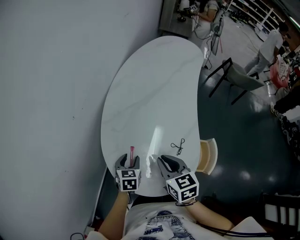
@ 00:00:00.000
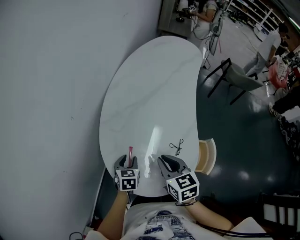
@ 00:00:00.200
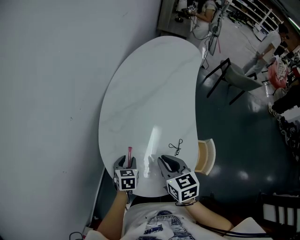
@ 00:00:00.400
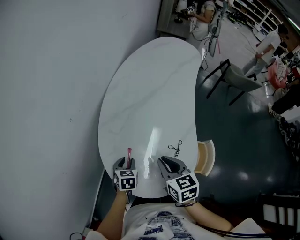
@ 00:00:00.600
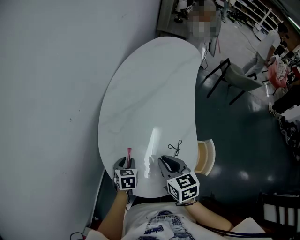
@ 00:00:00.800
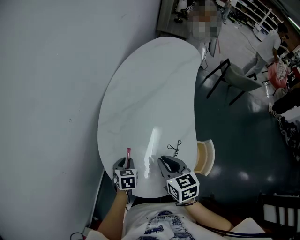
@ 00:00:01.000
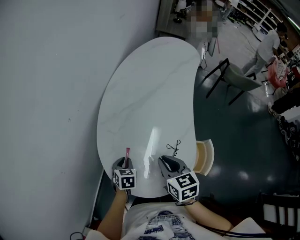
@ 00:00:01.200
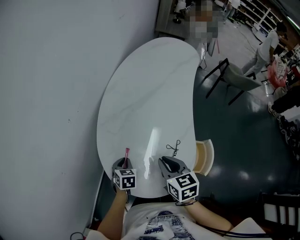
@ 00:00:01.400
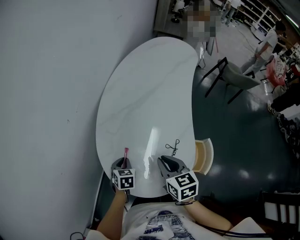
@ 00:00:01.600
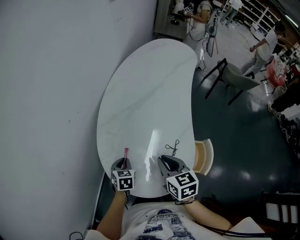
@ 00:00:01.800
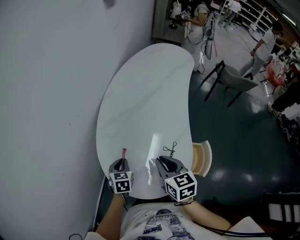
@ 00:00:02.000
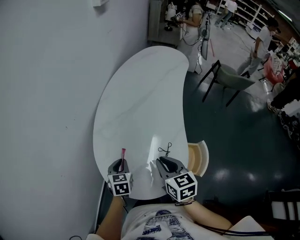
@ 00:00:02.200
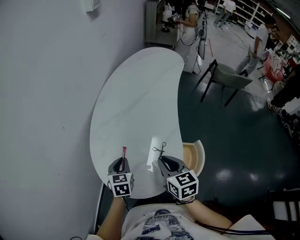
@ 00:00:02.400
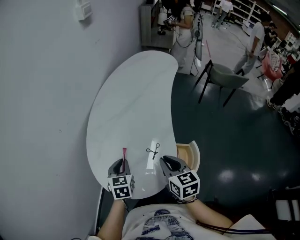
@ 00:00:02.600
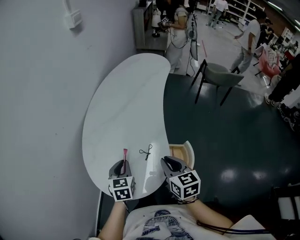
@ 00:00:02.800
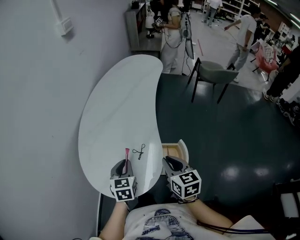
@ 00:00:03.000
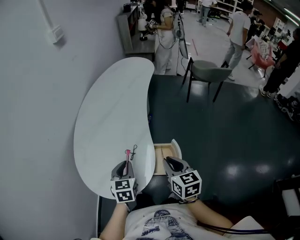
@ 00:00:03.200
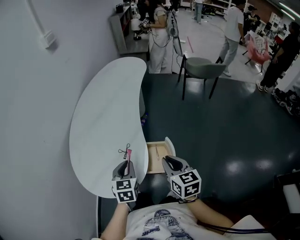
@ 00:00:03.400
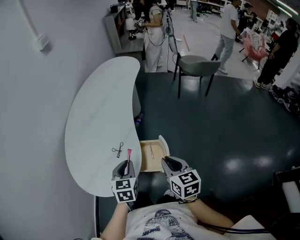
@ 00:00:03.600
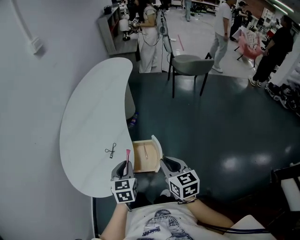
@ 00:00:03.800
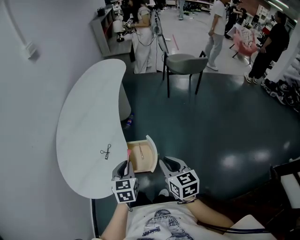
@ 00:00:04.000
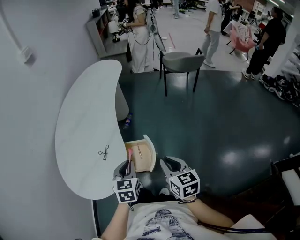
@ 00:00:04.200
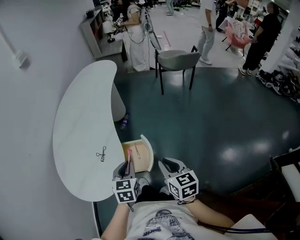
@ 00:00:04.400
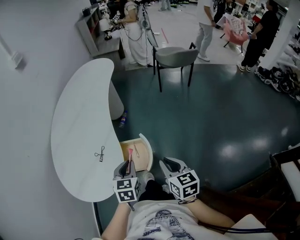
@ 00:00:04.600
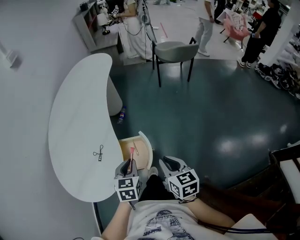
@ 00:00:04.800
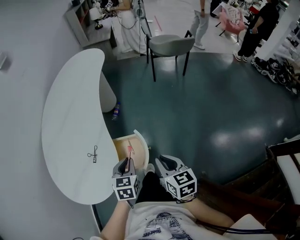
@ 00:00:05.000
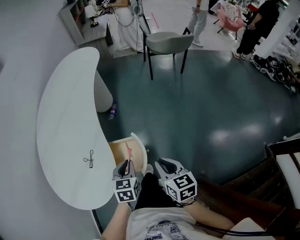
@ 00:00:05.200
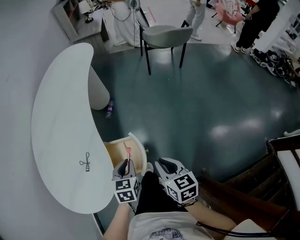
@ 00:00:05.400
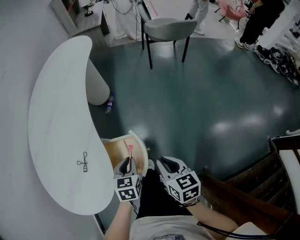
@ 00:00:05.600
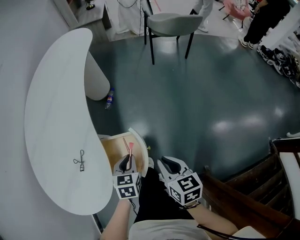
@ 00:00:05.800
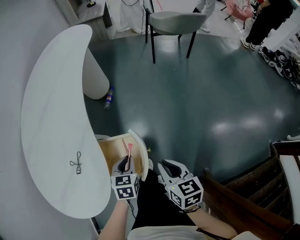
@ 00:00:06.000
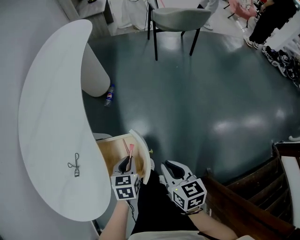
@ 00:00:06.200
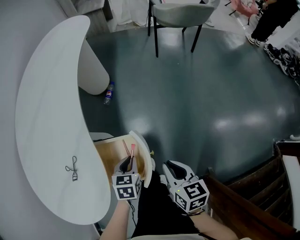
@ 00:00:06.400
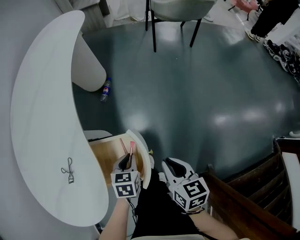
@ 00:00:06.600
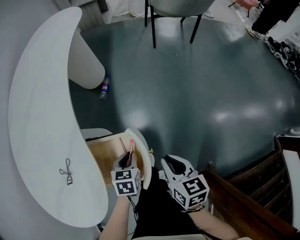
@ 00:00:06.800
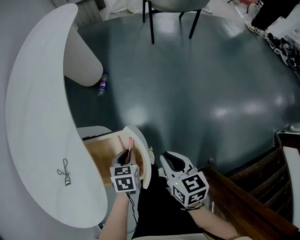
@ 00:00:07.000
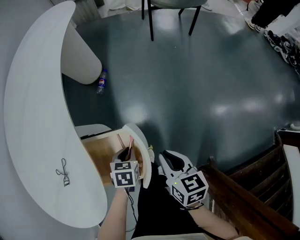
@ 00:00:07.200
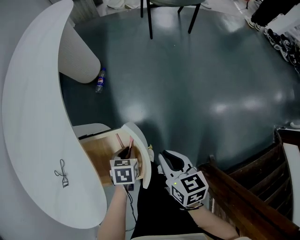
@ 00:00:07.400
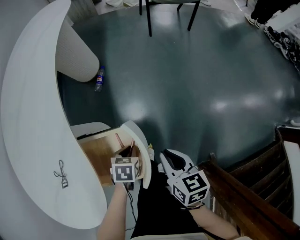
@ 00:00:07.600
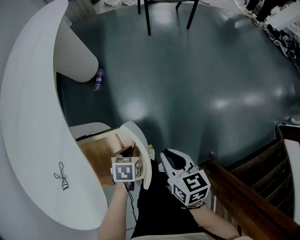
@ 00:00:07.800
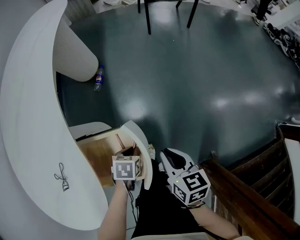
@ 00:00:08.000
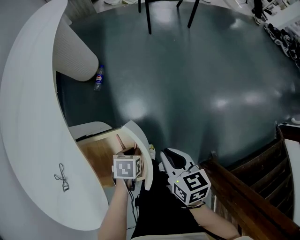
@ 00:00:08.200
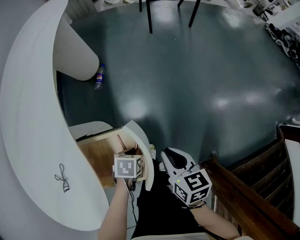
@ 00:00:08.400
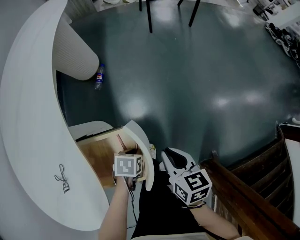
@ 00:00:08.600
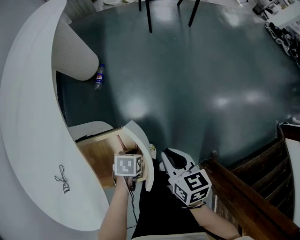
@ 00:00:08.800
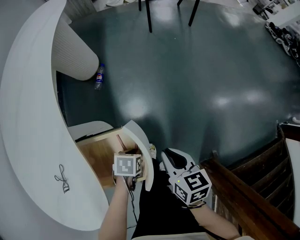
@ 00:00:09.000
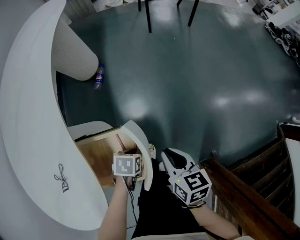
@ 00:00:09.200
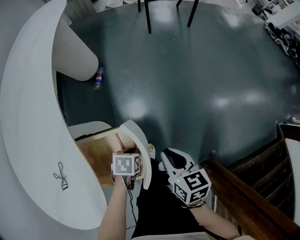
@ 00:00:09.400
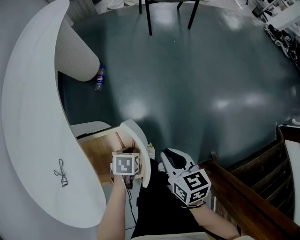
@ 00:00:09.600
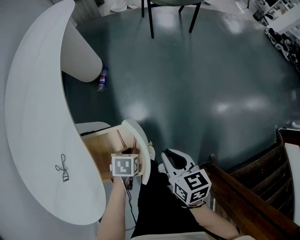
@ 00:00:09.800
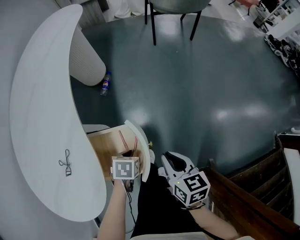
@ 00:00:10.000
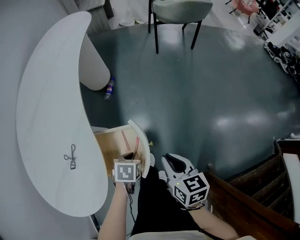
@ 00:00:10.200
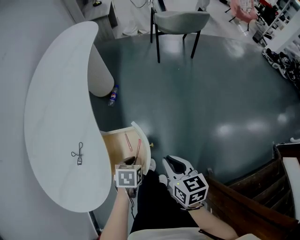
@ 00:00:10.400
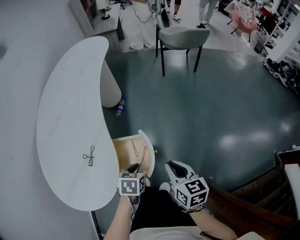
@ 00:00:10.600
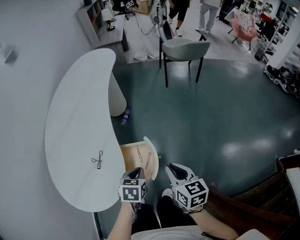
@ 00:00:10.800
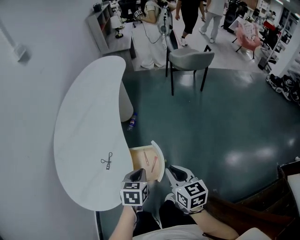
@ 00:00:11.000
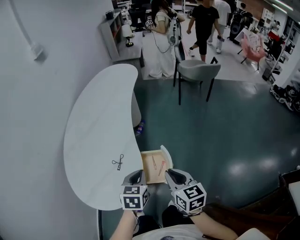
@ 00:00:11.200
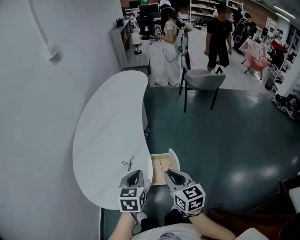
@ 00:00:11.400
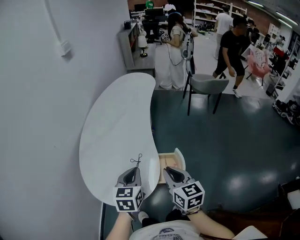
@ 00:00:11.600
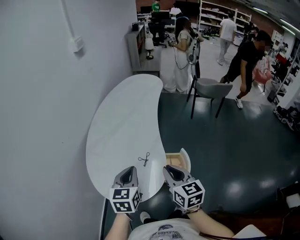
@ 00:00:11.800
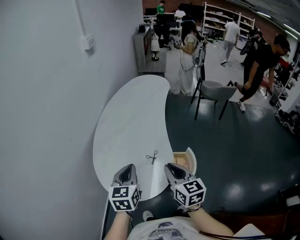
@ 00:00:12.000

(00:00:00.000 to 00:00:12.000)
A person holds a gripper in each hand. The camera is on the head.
00:00:00.000 - 00:00:01.600: The left gripper closes.
00:00:01.600 - 00:00:03.000: The left gripper goes about 25 cm to the right and upward. The right gripper heads to the right and backward, covering some 25 cm.
00:00:03.000 - 00:00:04.400: The left gripper travels to the right by some 25 cm. Meanwhile the right gripper shifts roughly 25 cm to the right and backward.
00:00:04.400 - 00:00:06.000: Both grippers travel together downward, roughly 20 cm.
00:00:06.000 - 00:00:07.600: The two grippers go some 15 cm downward. The left gripper swivels approximately 20 degrees.
00:00:07.600 - 00:00:09.000: There are only small adjustments of the grippers.
00:00:09.000 - 00:00:10.400: Both grippers move upward, roughly 15 cm.
00:00:10.400 - 00:00:12.000: The right gripper is displaced to the left and upward by approximately 40 cm, and turns by approximately 20 degrees; the left gripper goes roughly 50 cm upward and to the left, and tips its fingers upward by approximately 40 degrees.

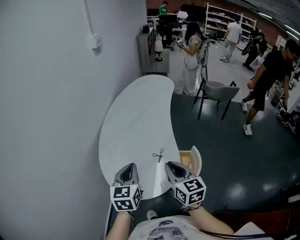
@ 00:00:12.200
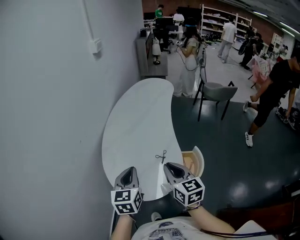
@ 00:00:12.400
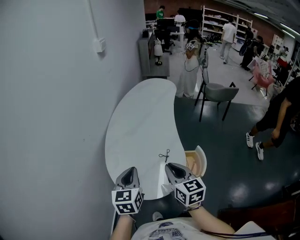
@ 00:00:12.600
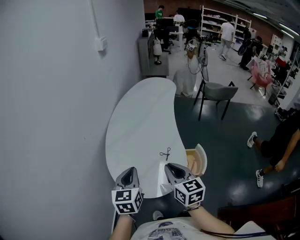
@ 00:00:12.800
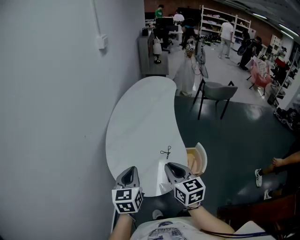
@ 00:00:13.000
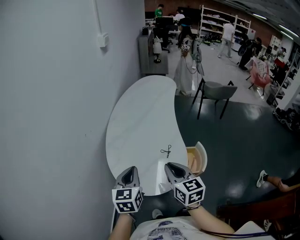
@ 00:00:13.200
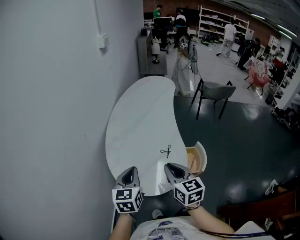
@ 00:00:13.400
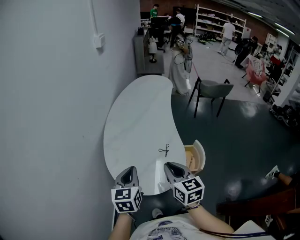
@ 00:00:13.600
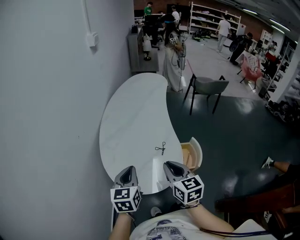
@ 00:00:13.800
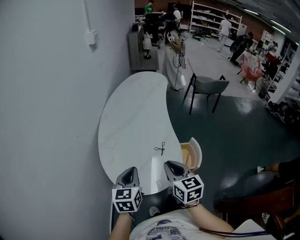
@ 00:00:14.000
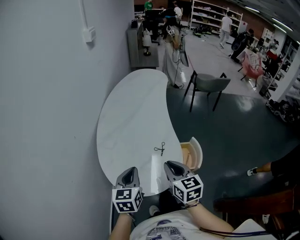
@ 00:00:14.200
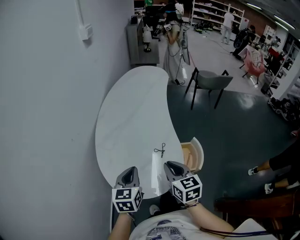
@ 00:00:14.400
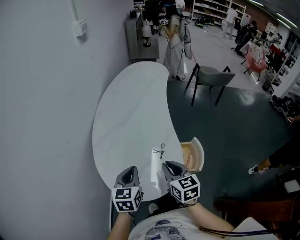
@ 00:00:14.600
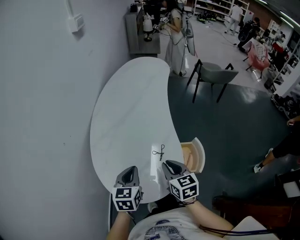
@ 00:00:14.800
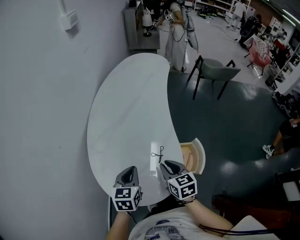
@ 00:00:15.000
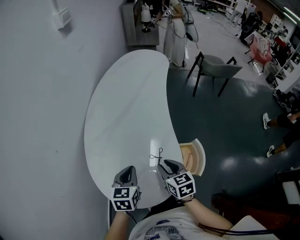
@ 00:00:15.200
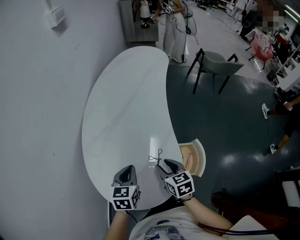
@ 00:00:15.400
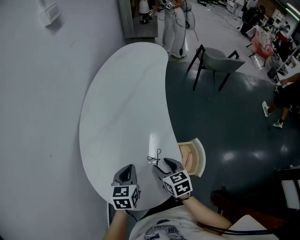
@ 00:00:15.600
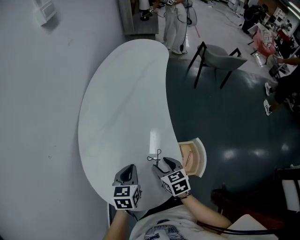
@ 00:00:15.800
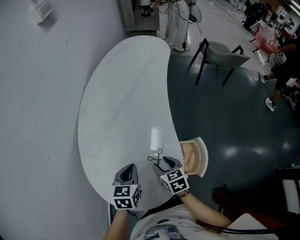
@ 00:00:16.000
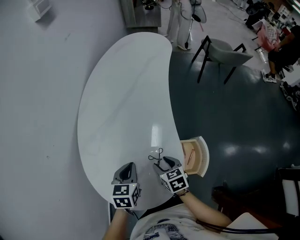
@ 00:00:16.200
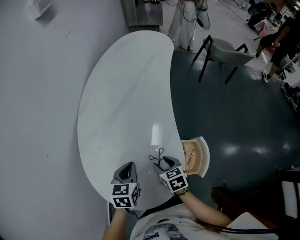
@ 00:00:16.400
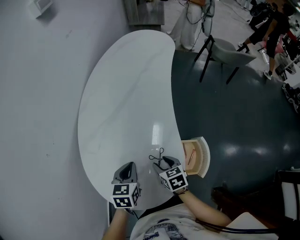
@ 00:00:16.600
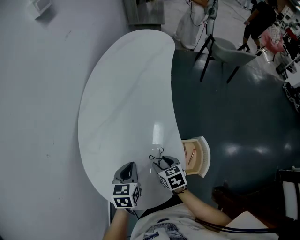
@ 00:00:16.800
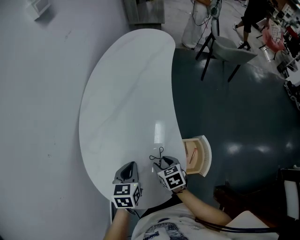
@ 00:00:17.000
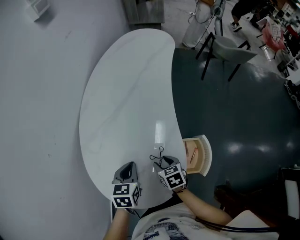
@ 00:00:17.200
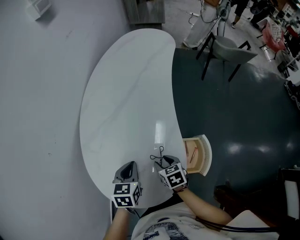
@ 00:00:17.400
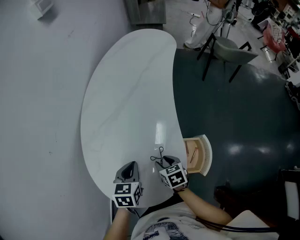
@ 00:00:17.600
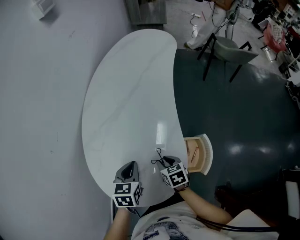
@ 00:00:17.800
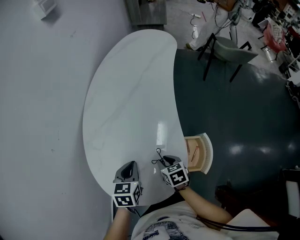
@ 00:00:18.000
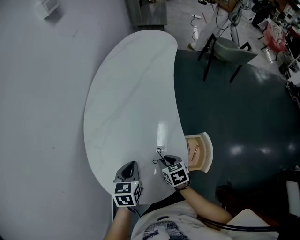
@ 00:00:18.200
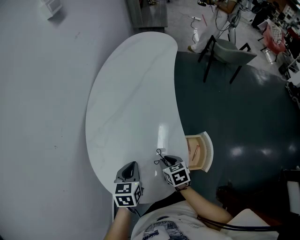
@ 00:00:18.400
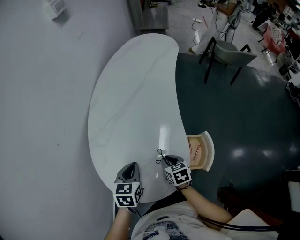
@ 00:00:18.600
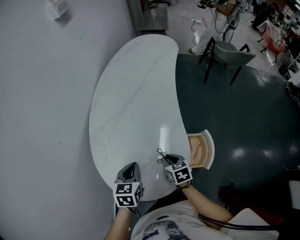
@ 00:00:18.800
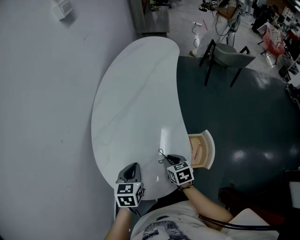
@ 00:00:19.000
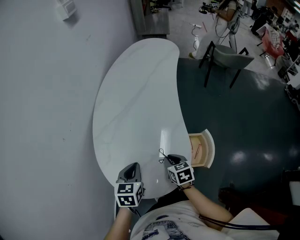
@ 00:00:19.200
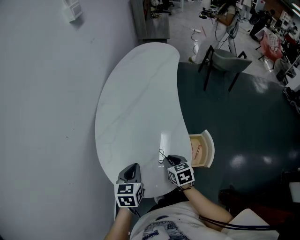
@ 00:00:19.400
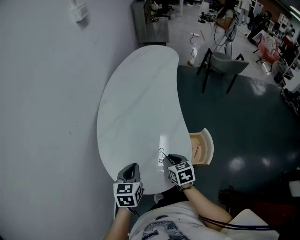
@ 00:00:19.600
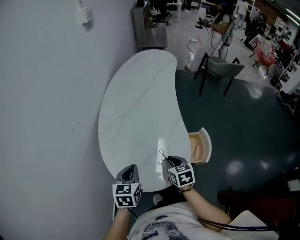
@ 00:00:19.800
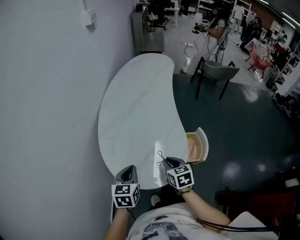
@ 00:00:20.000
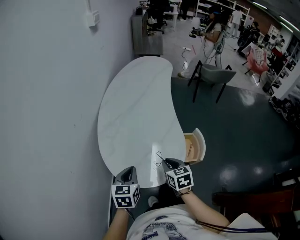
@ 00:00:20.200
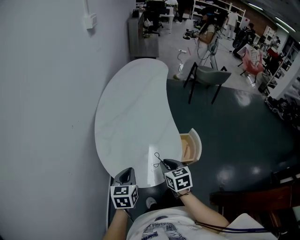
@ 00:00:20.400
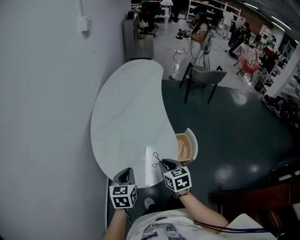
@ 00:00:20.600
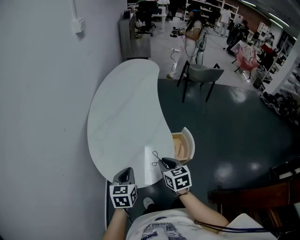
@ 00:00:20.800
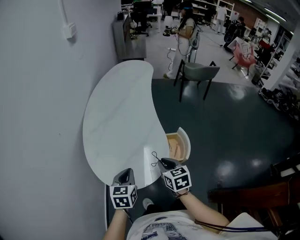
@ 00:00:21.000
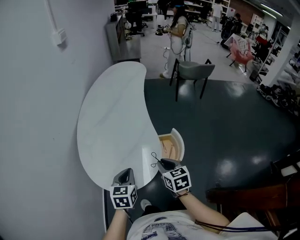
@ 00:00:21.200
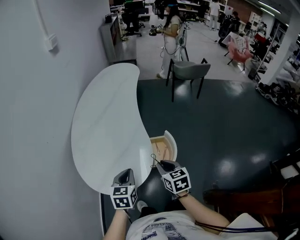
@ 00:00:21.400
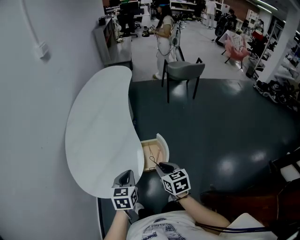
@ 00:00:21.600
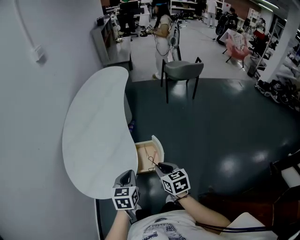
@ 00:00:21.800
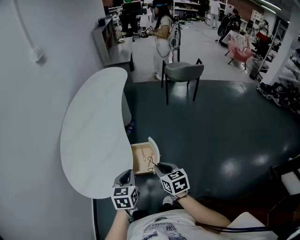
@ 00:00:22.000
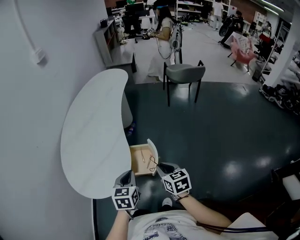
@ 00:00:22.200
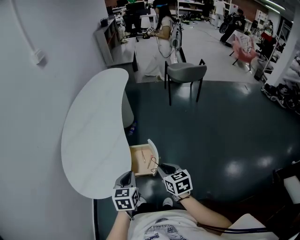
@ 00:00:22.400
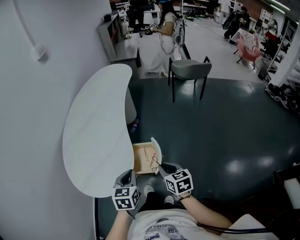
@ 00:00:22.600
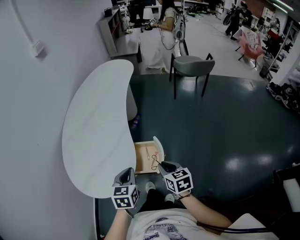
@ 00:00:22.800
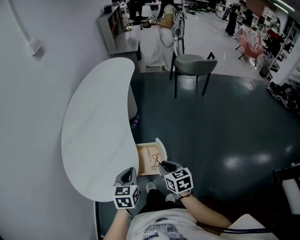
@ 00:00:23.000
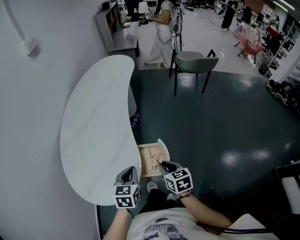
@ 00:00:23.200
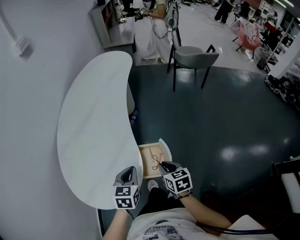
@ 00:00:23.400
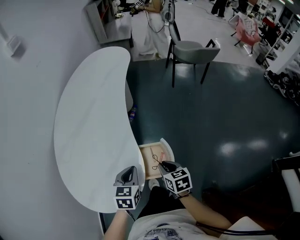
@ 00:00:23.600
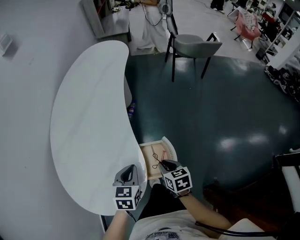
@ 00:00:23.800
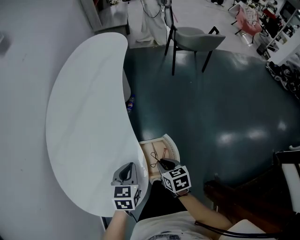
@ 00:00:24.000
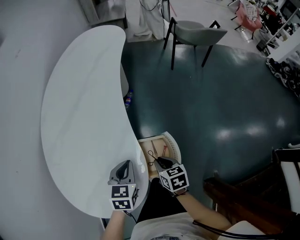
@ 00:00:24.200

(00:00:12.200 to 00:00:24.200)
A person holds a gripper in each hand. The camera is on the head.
00:00:12.200 - 00:00:13.800: The grippers both shift to the left by roughly 5 cm.
00:00:13.800 - 00:00:15.200: The left gripper is displaced forward, downward and to the right by about 20 cm, while the right gripper moves downward and forward, some 20 cm.
00:00:15.200 - 00:00:16.600: The right gripper heads downward, covering some 10 cm, and opens up, while the left gripper shifts some 5 cm downward.
00:00:16.600 - 00:00:18.200: The right gripper closes its fingers.
00:00:18.200 - 00:00:19.800: The left gripper goes roughly 15 cm backward, to the left and upward, while the right gripper shifts roughly 15 cm upward and backward.
00:00:19.800 - 00:00:21.200: The left gripper is displaced to the right and backward by about 15 cm; the right gripper is displaced to the right, backward and upward by about 15 cm.
00:00:21.200 - 00:00:22.600: Both grippers travel together to the right, some 20 cm.
00:00:22.600 - 00:00:24.200: The left gripper travels forward and downward by roughly 20 cm; the right gripper goes roughly 25 cm downward, forward and to the left.
